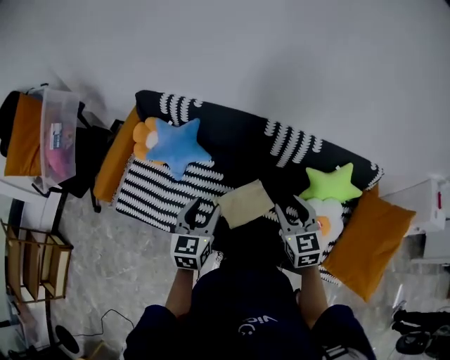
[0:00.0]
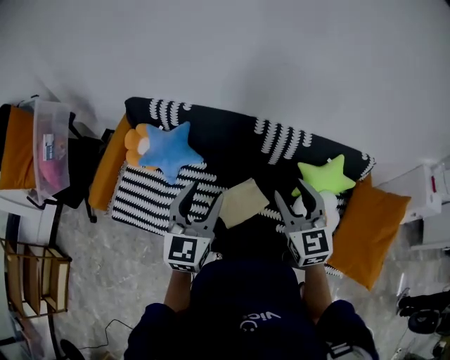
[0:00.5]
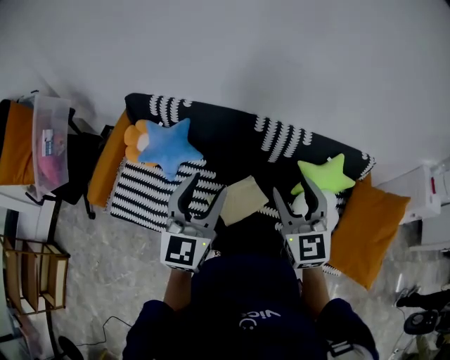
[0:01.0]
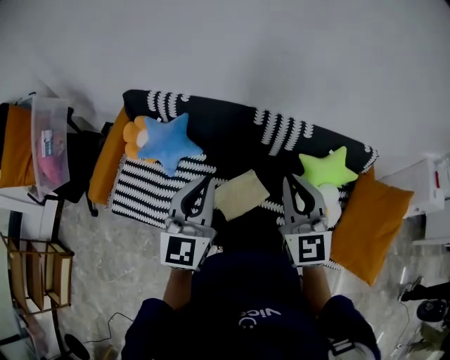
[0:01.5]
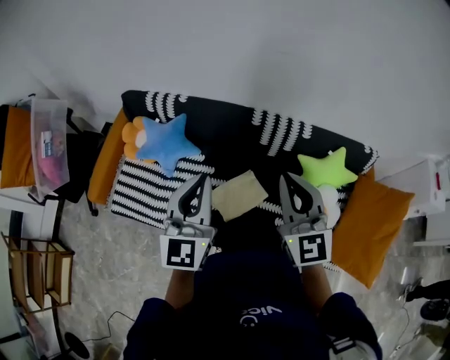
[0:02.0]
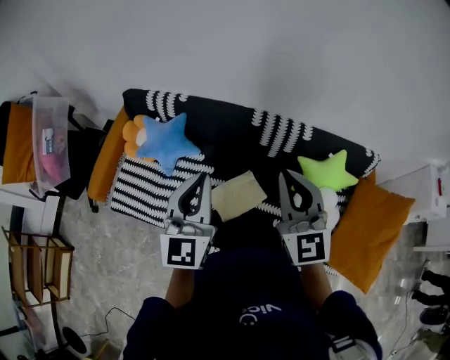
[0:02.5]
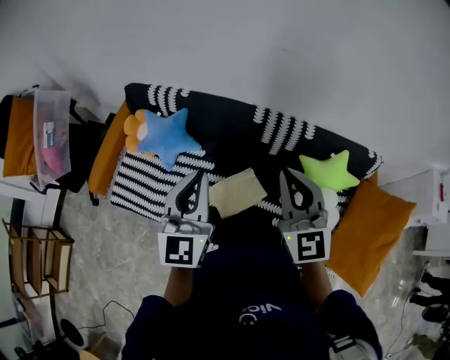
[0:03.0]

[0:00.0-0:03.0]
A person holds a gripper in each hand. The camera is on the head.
0:00.0 to 0:01.5: The two grippers go approximately 15 cm upward. The left gripper changes its angle by approximately 20 degrees, and closes up. The right gripper rotates about 20 degrees, and closes.
0:01.5 to 0:03.0: The grippers stay close to where they were, moving slightly.

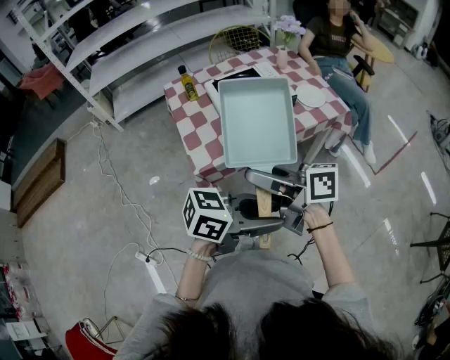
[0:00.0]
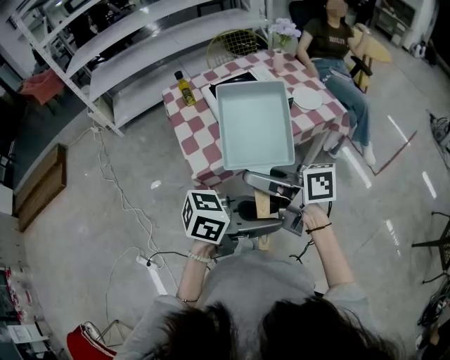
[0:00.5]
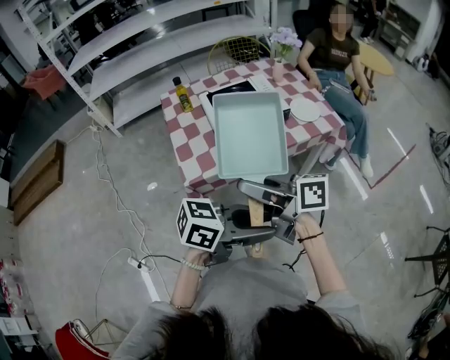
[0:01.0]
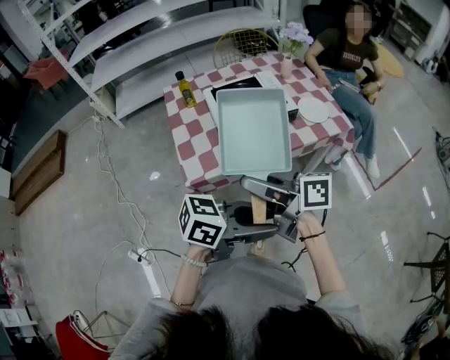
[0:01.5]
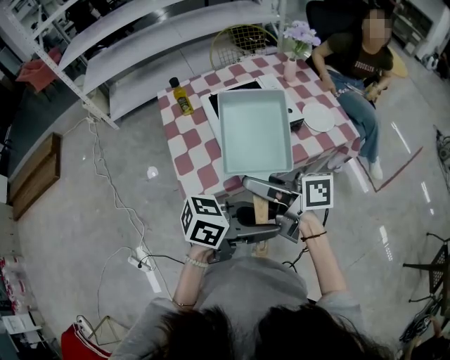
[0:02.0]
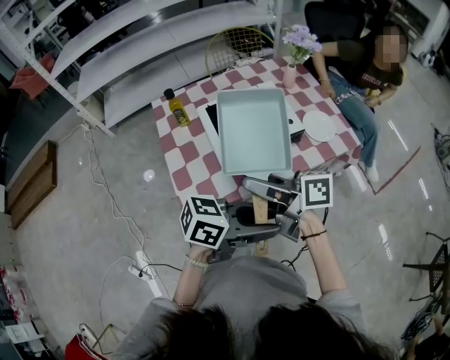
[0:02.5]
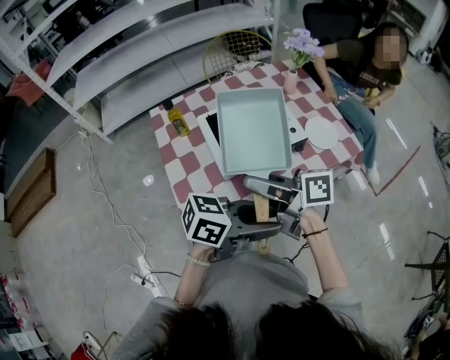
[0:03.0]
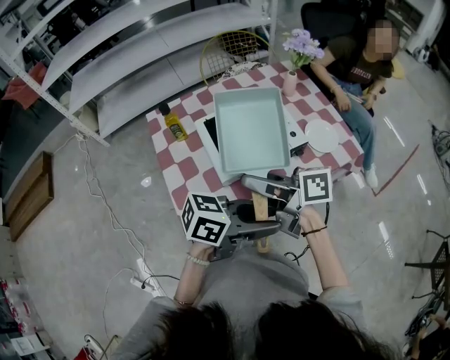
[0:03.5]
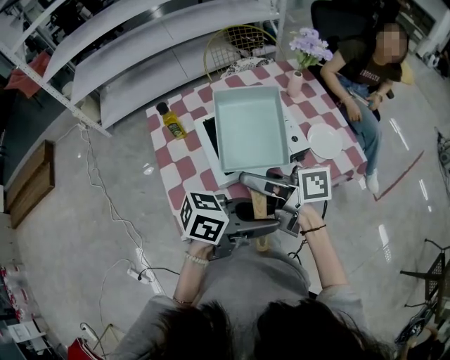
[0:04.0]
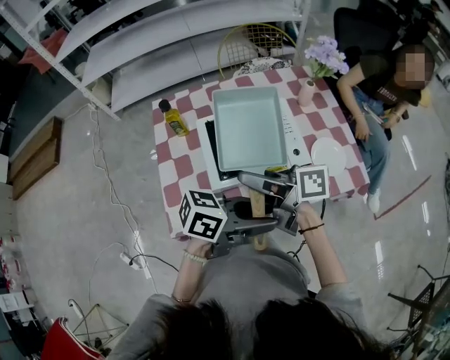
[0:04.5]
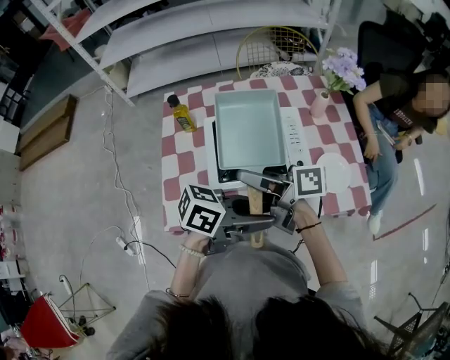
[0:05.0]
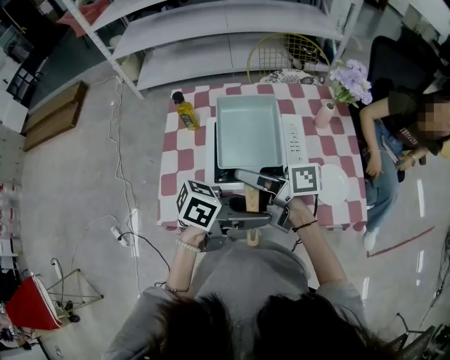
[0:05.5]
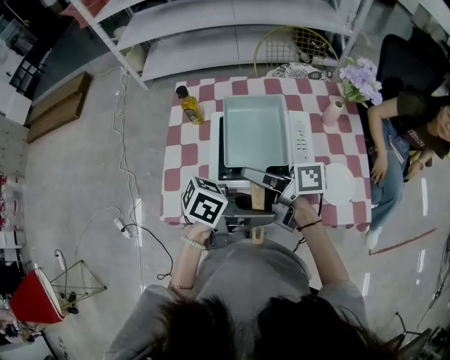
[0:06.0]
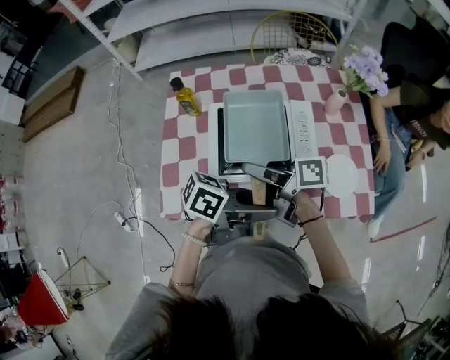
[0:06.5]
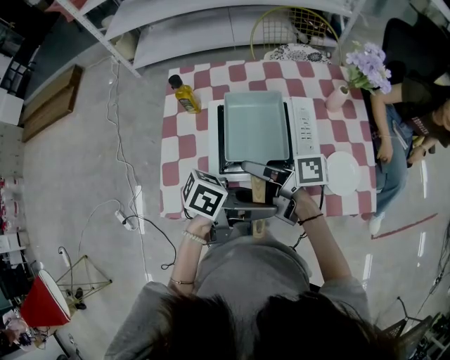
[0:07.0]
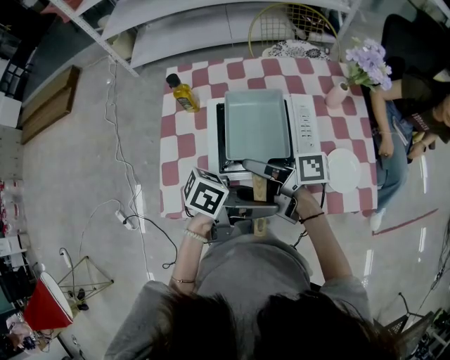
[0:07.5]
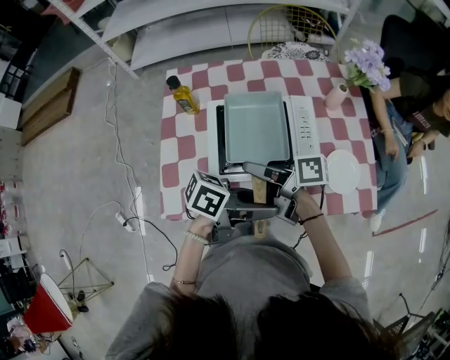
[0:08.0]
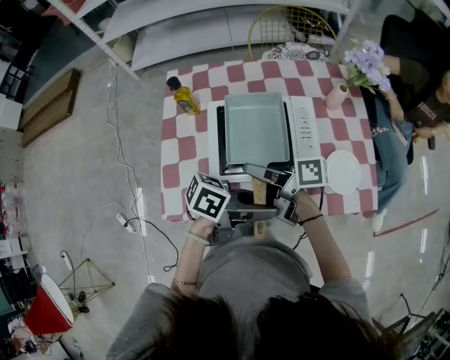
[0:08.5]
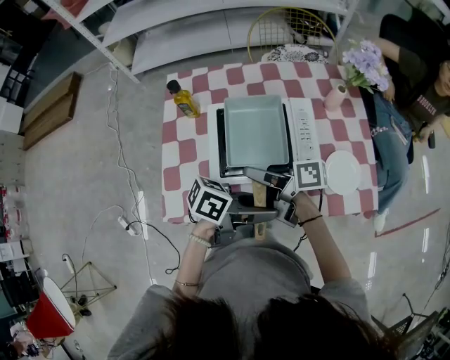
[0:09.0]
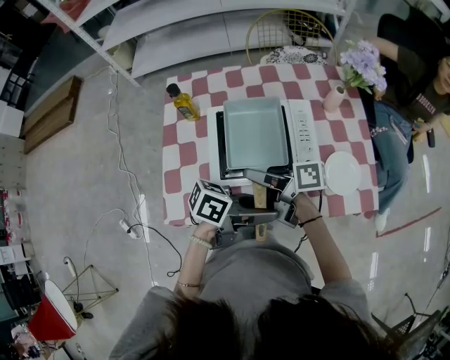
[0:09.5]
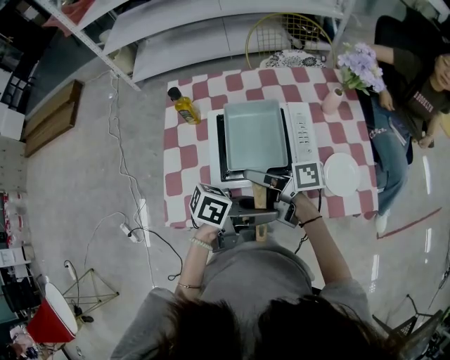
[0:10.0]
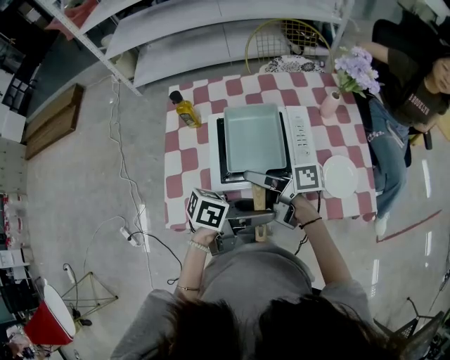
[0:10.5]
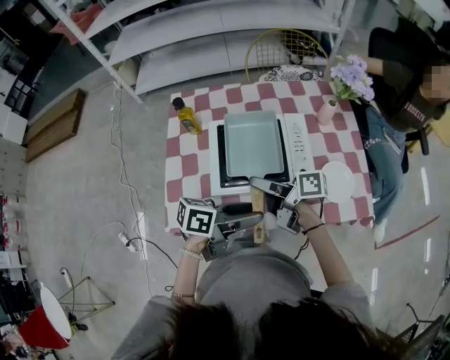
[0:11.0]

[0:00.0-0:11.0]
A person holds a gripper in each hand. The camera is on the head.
0:00.0 to 0:02.0: The left gripper moves about 15 cm. Meanwhile the right gripper ends up approximately 15 cm from where it was.
0:02.0 to 0:03.5: The right gripper changes place by roughly 10 cm; the left gripper changes place by some 10 cm.
0:03.5 to 0:05.5: The left gripper moves some 15 cm, and swivels roughly 20 degrees, while the right gripper moves roughly 10 cm, and turns by roughly 20 degrees.
0:05.5 to 0:07.5: The right gripper is displaced downward by approximately 5 cm.
0:07.5 to 0:11.0: There are only small adjustments of the grippers.

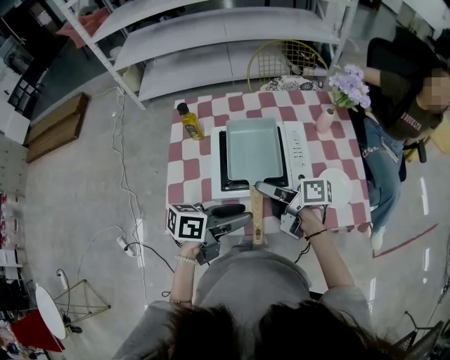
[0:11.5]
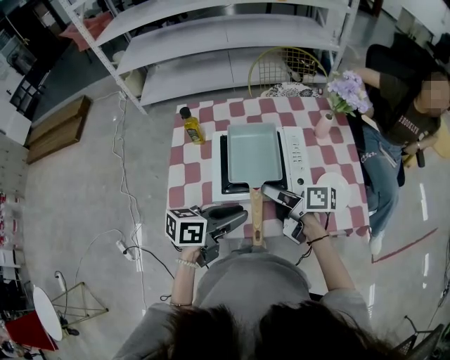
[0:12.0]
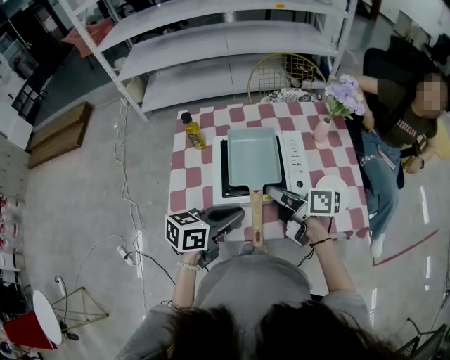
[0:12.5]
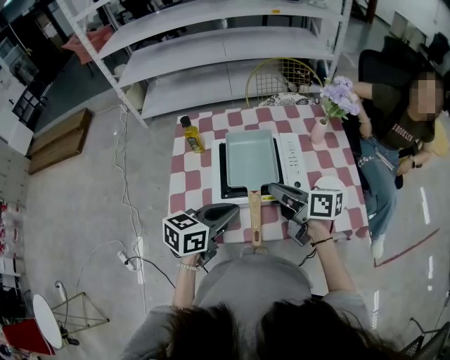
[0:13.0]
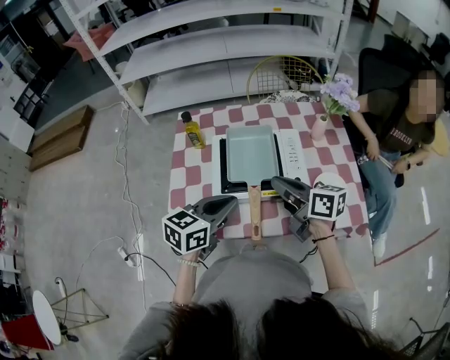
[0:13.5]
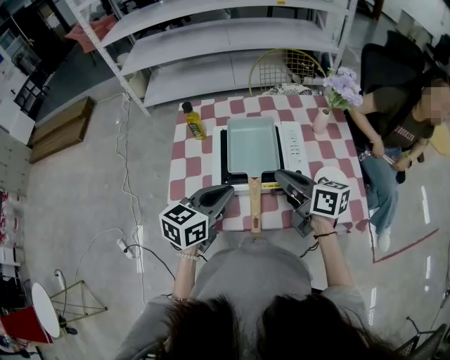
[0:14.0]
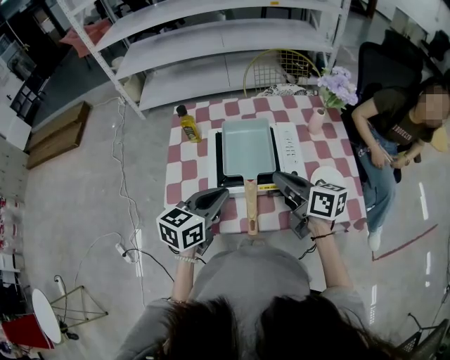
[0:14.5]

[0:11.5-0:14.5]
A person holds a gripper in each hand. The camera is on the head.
0:11.5 to 0:13.0: The right gripper moves some 5 cm, changes its angle by some 20 degrees, and closes; the left gripper changes its angle by roughly 30 degrees, and closes.
0:13.0 to 0:14.5: The grippers move only a little.

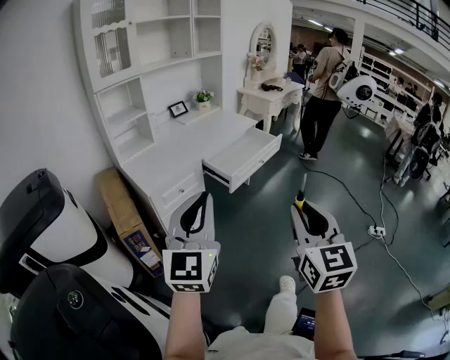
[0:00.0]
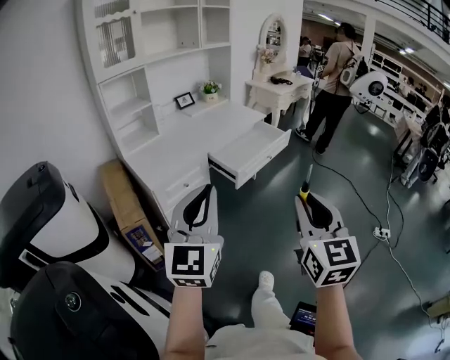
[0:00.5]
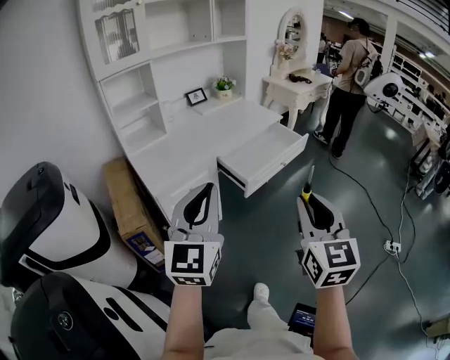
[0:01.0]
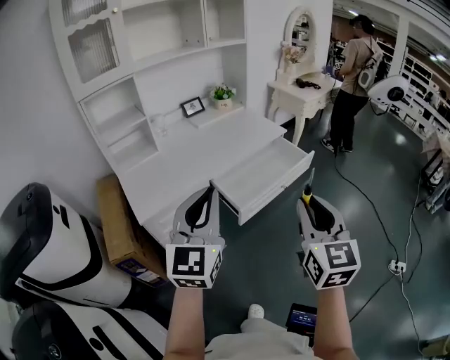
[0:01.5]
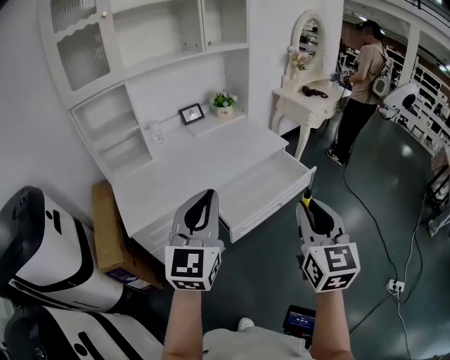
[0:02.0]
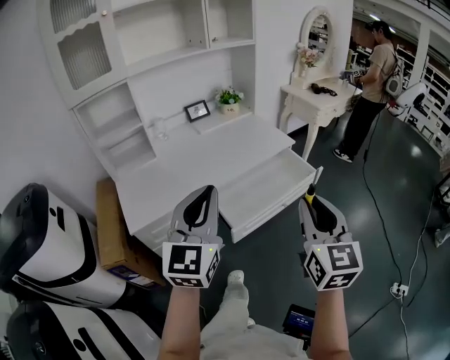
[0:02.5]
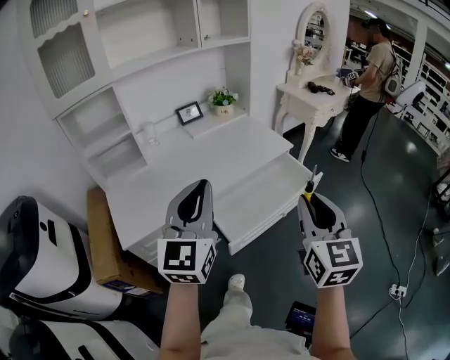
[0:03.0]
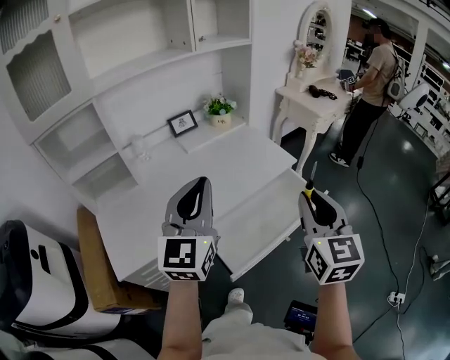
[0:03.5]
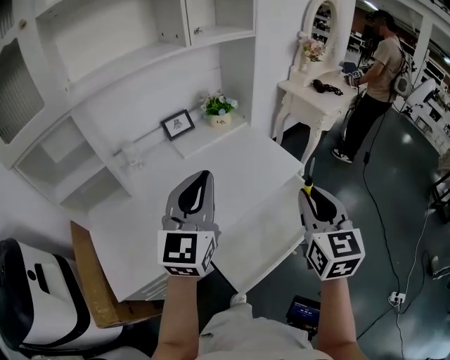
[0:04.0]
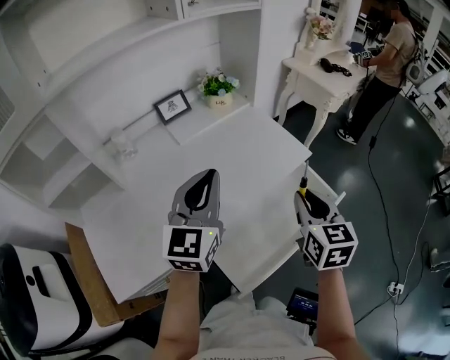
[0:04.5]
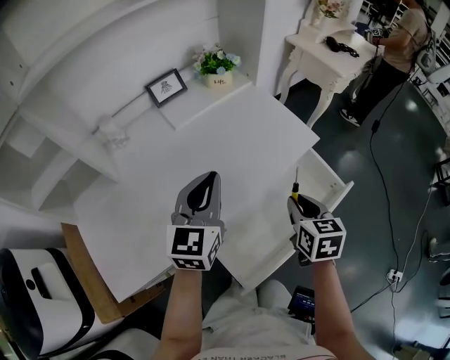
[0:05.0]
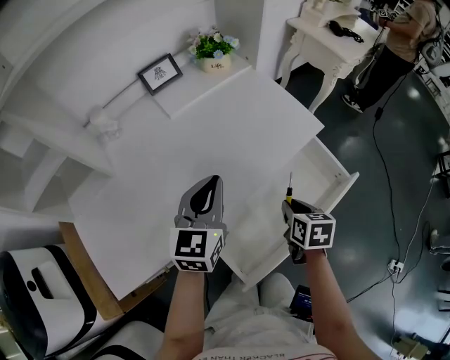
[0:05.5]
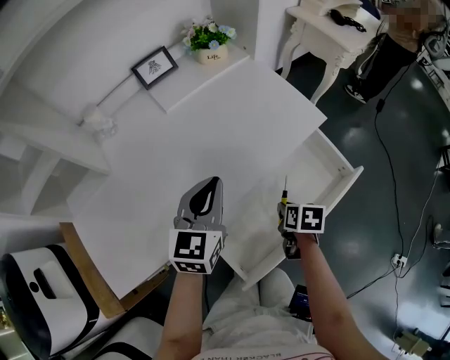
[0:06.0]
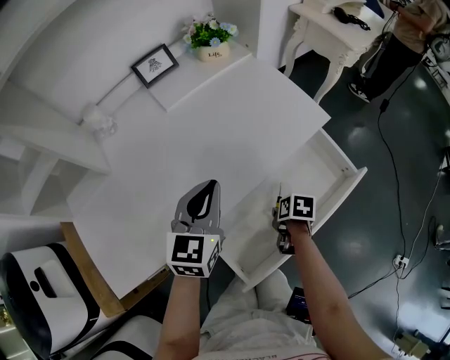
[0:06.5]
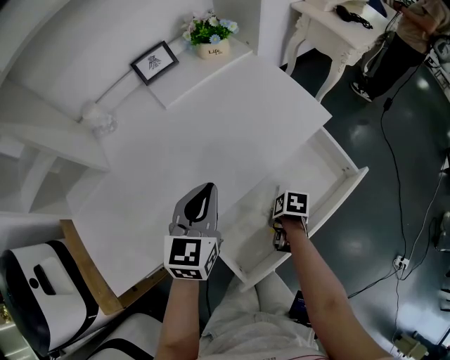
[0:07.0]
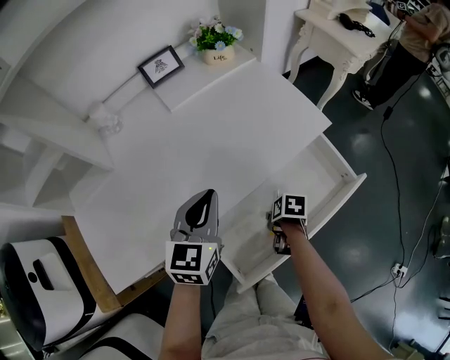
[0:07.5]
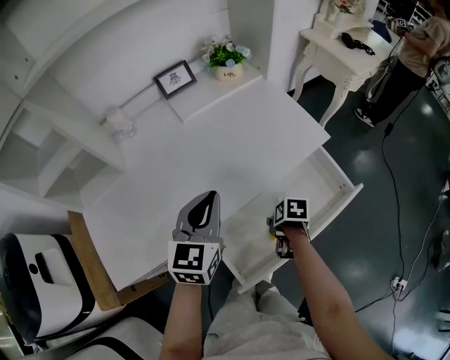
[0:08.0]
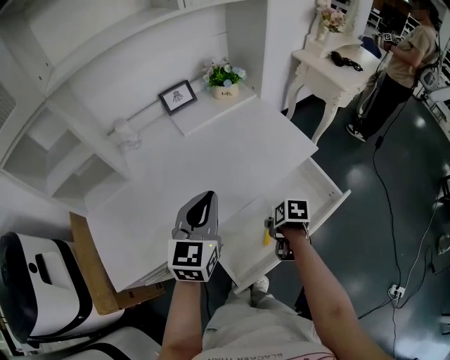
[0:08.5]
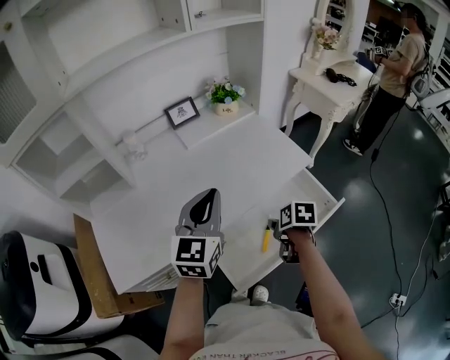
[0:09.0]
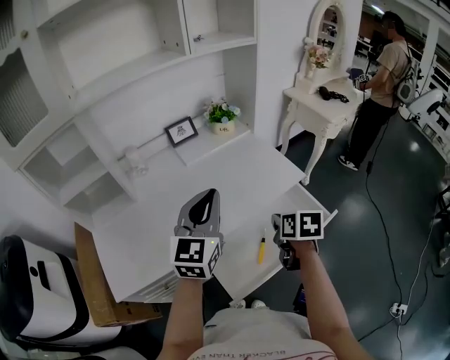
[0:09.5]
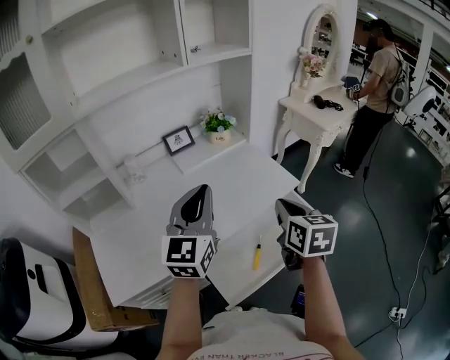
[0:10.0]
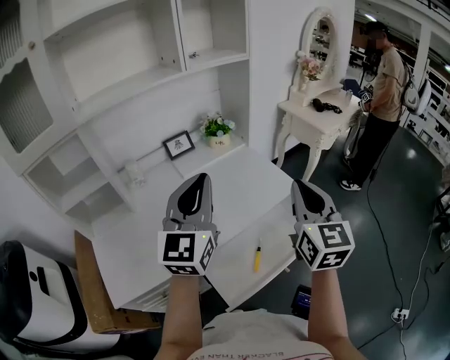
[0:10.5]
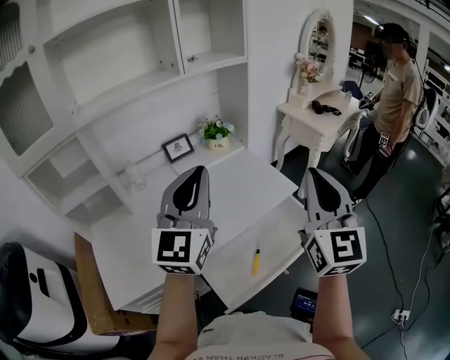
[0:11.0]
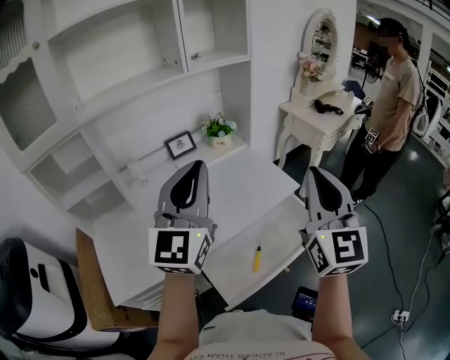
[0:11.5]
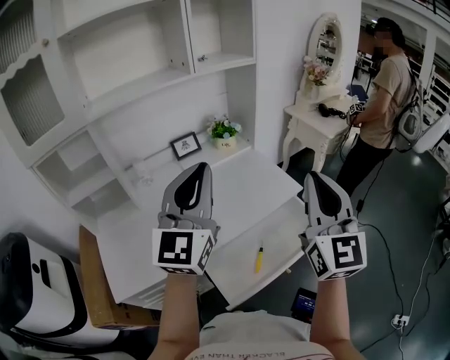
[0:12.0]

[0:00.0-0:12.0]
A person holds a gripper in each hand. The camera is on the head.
0:00.0 to 0:02.0: Both grippers move forward, some 40 cm.
0:02.0 to 0:04.0: Both grippers travel together forward, roughly 35 cm.
0:04.0 to 0:06.0: The right gripper shifts roughly 40 cm downward, and angles its fingers downward, by about 50 degrees. Meanwhile the left gripper moves downward, approximately 25 cm, and rotates some 30 degrees.
0:06.0 to 0:08.0: The right gripper opens up.
0:08.0 to 0:10.0: The right gripper is displaced upward by some 35 cm, tilts its fingers approximately 50 degrees upward, and closes its fingers. The left gripper travels upward by about 20 cm, and swivels approximately 20 degrees.
0:10.0 to 0:12.0: The left gripper heads upward, covering approximately 10 cm, while the right gripper is displaced upward by about 20 cm, and tilts its fingers some 40 degrees upward.
